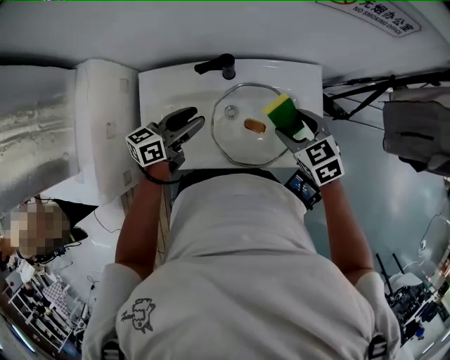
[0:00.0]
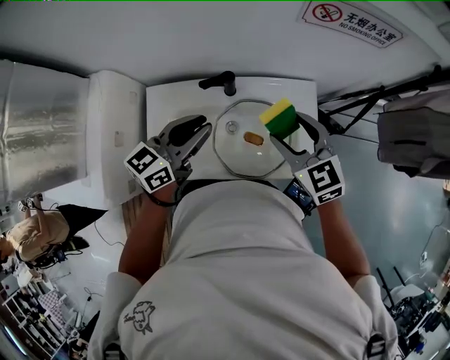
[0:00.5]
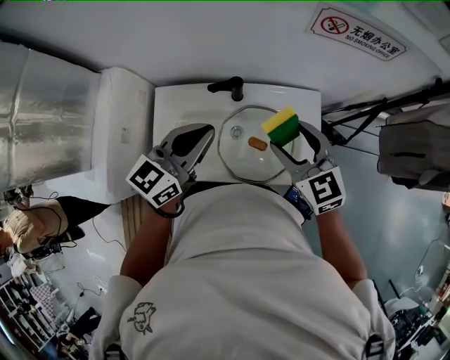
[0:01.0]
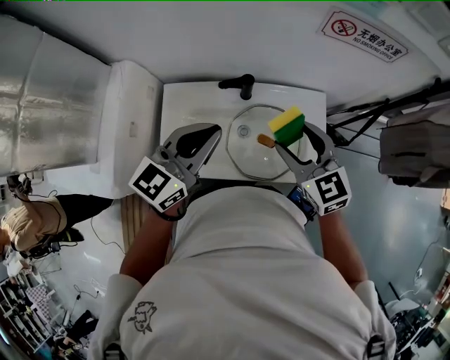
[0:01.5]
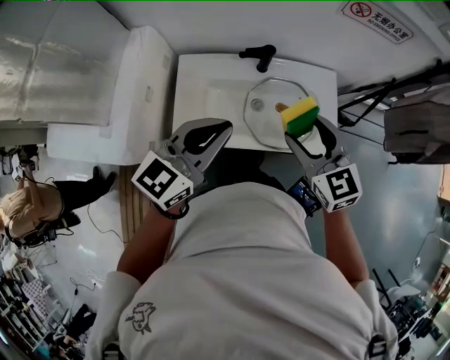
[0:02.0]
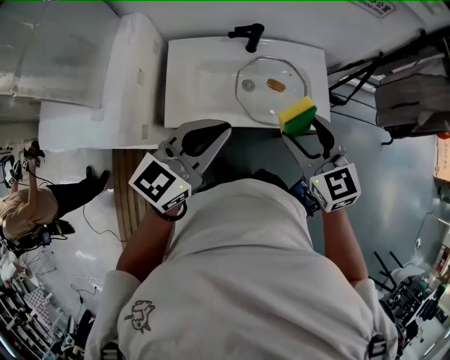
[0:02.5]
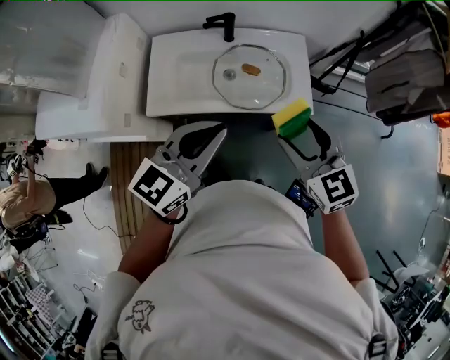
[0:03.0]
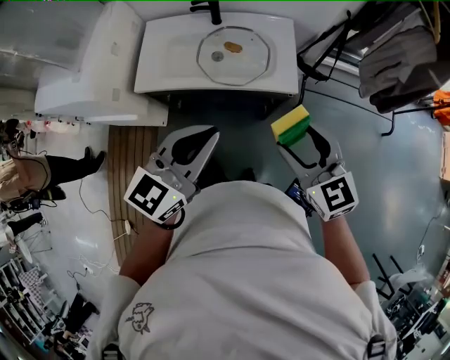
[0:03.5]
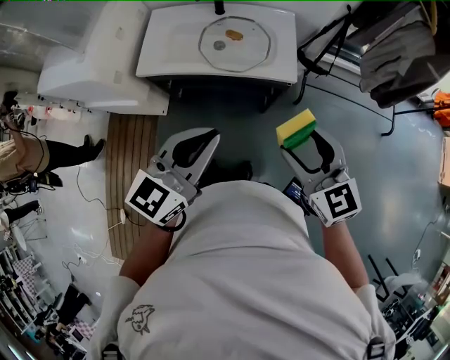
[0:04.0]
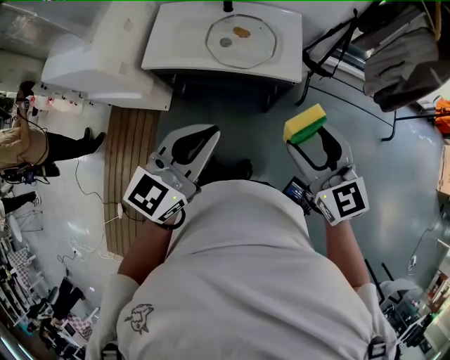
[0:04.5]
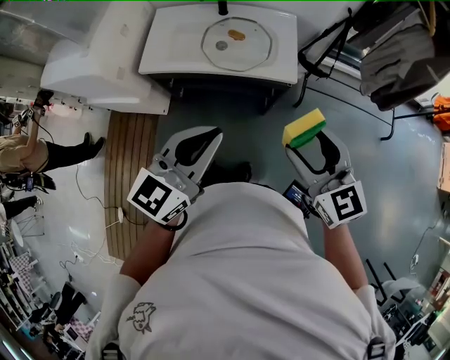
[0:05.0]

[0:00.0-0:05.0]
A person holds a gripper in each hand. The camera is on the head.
0:00.0 to 0:02.5: The two grippers go about 30 cm backward and upward. The left gripper swivels roughly 30 degrees, and closes its fingers, while the right gripper changes its angle by some 20 degrees.
0:02.5 to 0:05.0: The two grippers go about 35 cm backward and to the right.

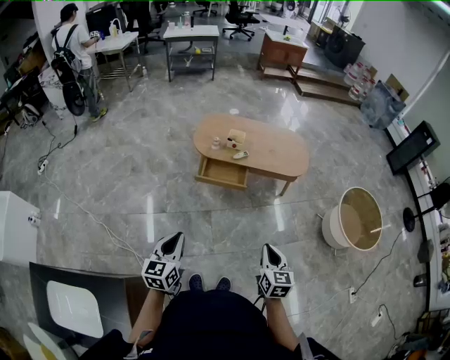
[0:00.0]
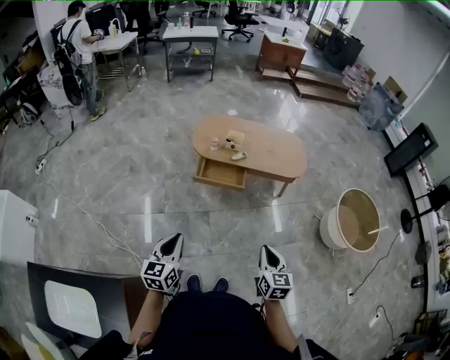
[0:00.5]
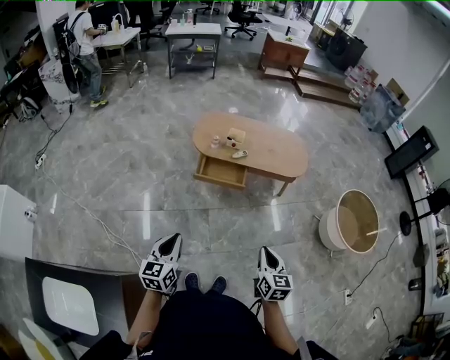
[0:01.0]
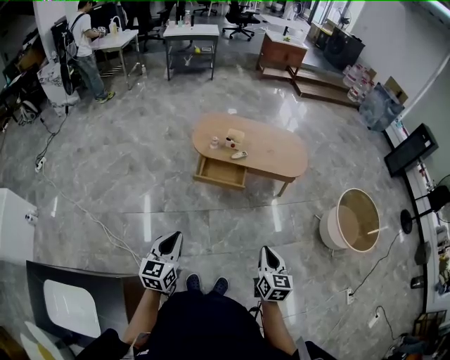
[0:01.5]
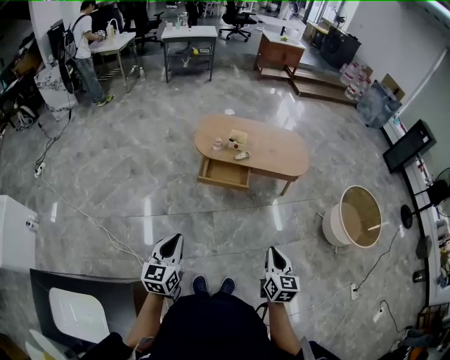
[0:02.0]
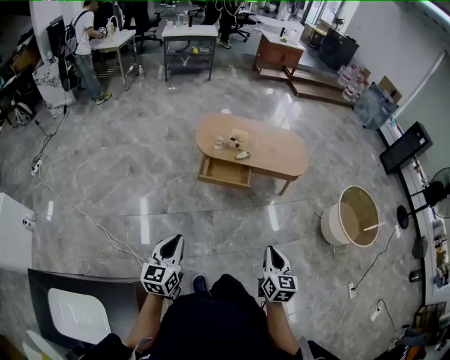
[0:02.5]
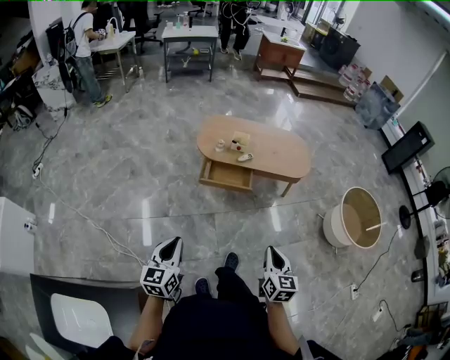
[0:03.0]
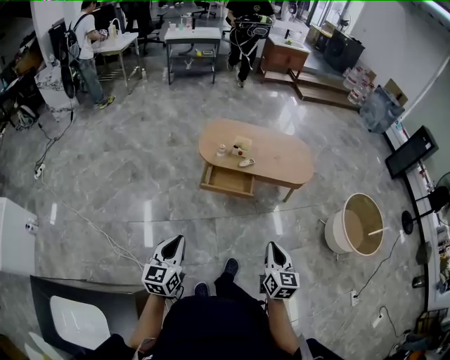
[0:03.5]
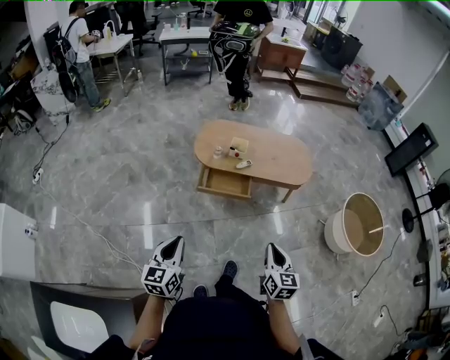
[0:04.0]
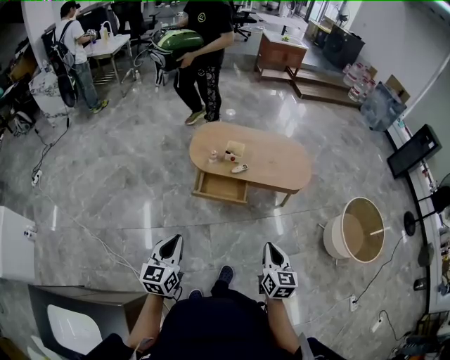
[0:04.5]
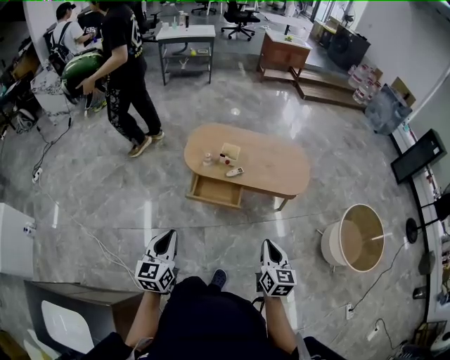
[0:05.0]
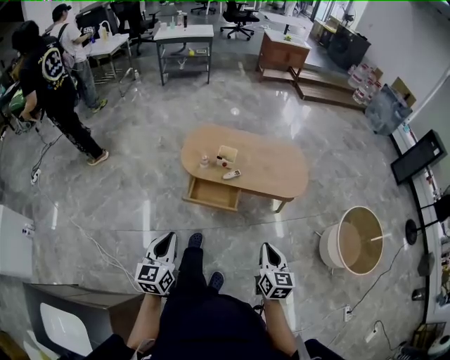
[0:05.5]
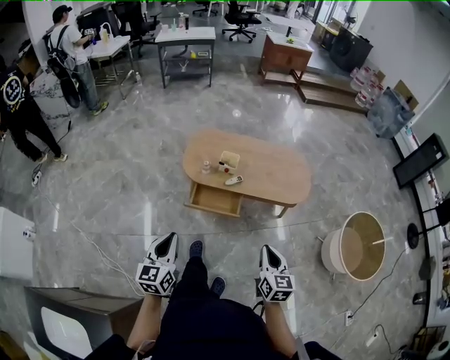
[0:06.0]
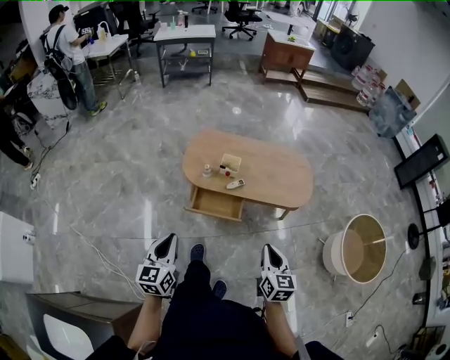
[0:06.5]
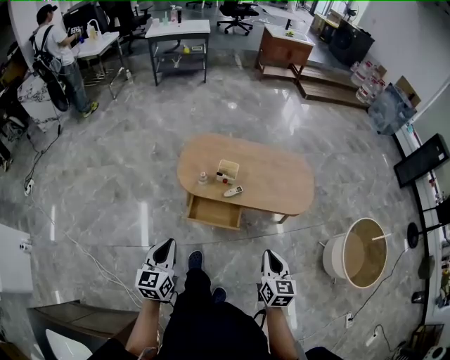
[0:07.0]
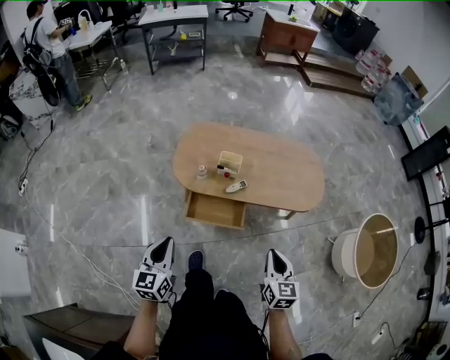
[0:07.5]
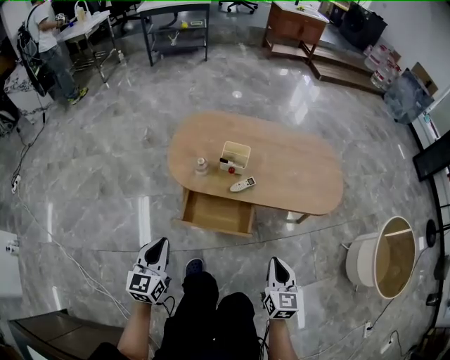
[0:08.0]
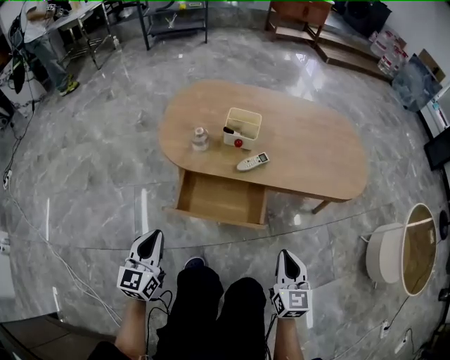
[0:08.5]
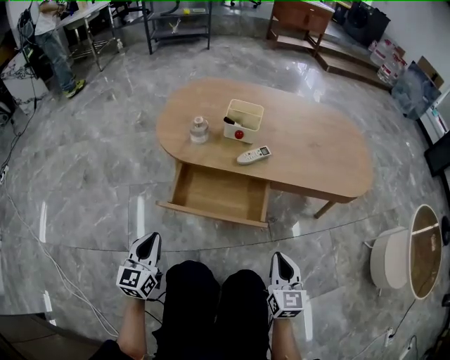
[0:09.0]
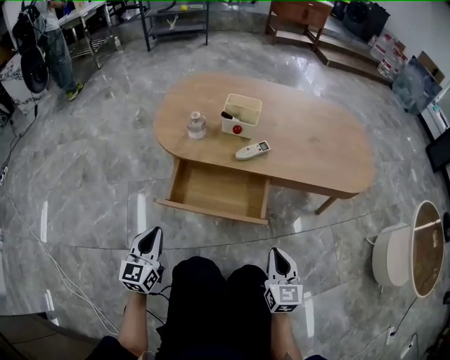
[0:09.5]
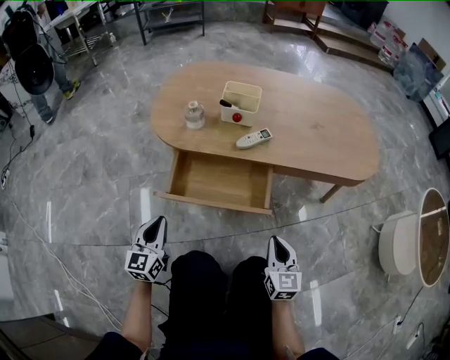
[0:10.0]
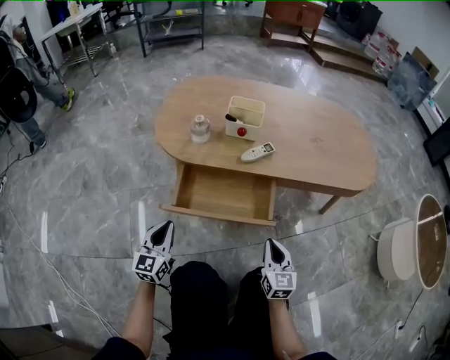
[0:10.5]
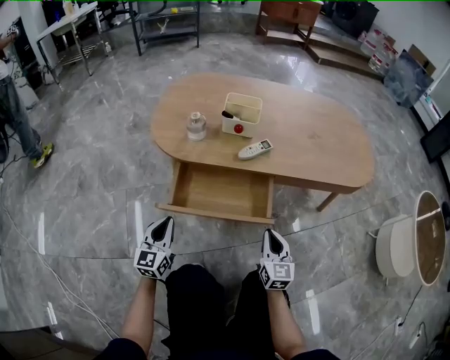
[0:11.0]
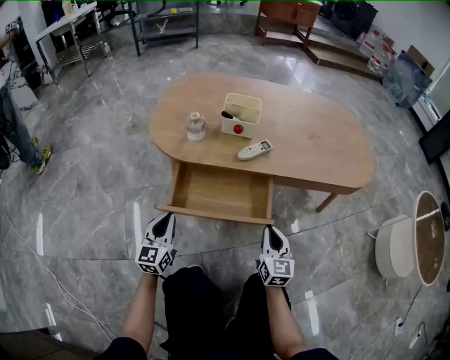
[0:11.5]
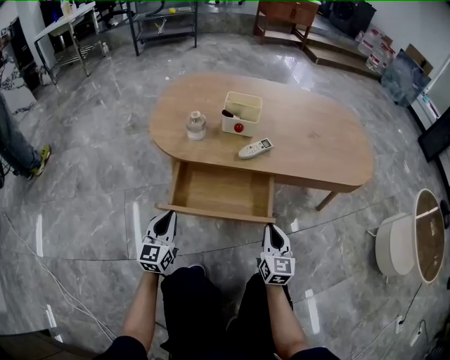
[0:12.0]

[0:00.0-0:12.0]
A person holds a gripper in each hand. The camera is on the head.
0:00.0 to 0:02.0: The grippers stay close to where they were, moving slightly.
0:02.0 to 0:04.0: Both grippers move forward, some 10 cm.
0:04.0 to 0:06.0: Both grippers move forward and to the right, roughly 20 cm.
0:06.0 to 0:08.0: The two grippers go some 35 cm downward and forward.
0:08.0 to 0:10.0: The grippers both shift downward by roughly 30 cm.
0:10.0 to 0:12.0: The two grippers go approximately 5 cm forward.

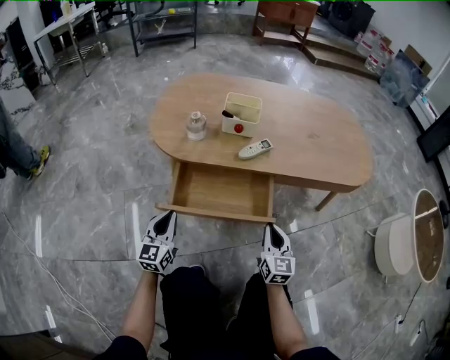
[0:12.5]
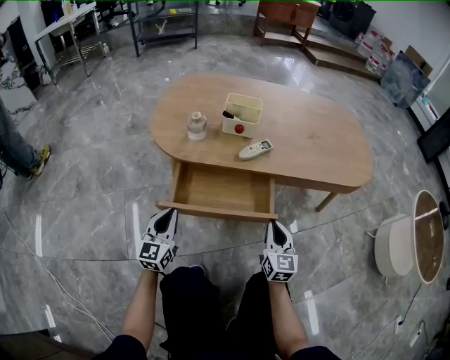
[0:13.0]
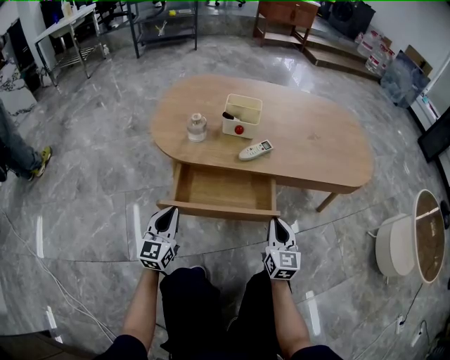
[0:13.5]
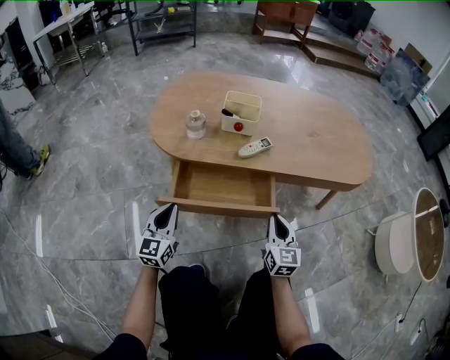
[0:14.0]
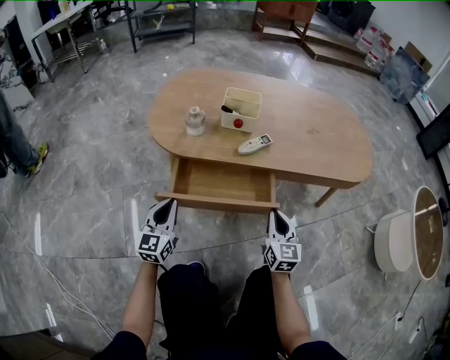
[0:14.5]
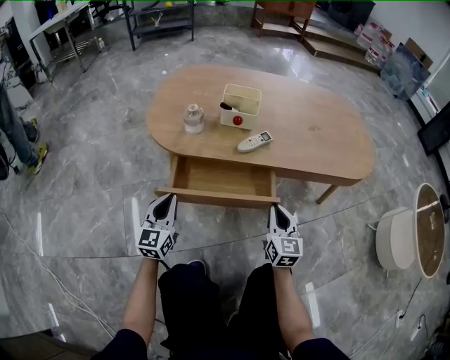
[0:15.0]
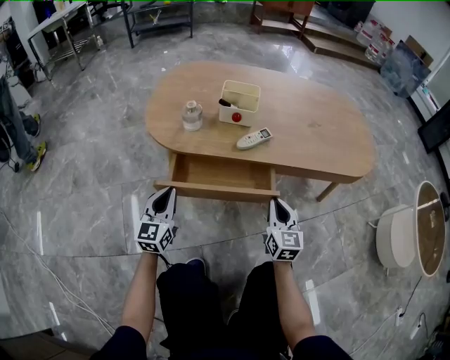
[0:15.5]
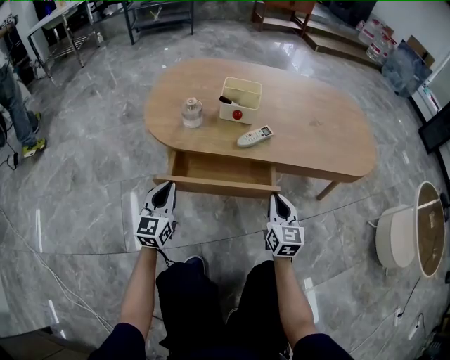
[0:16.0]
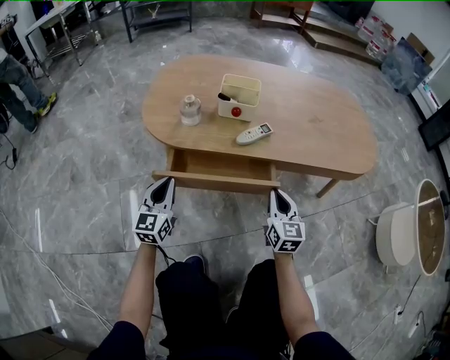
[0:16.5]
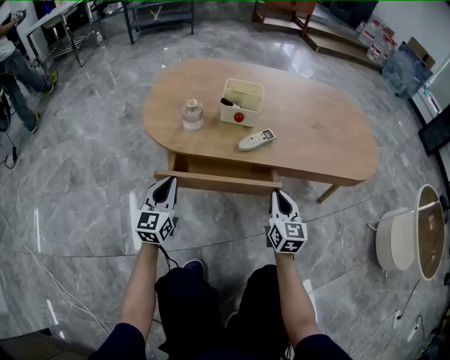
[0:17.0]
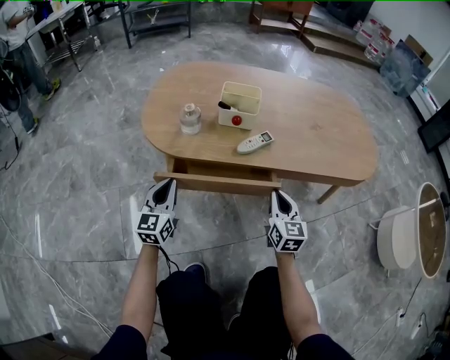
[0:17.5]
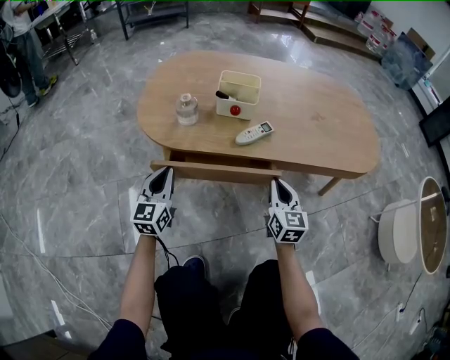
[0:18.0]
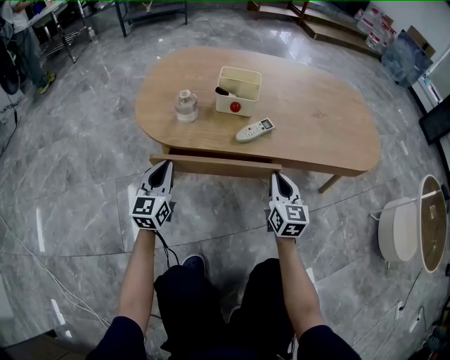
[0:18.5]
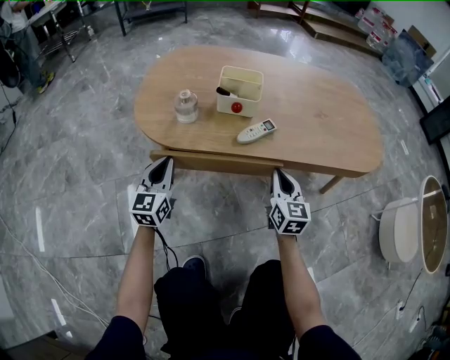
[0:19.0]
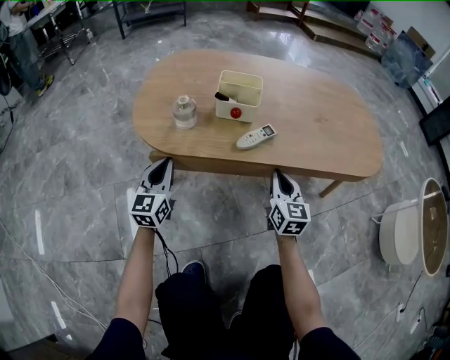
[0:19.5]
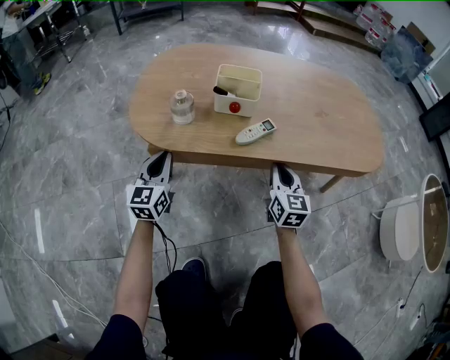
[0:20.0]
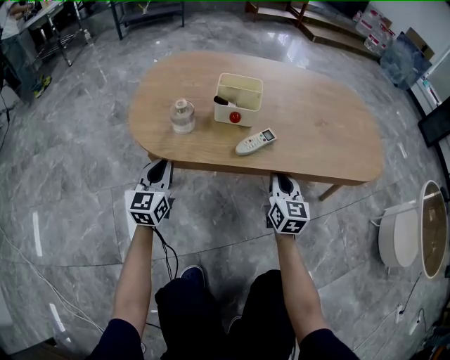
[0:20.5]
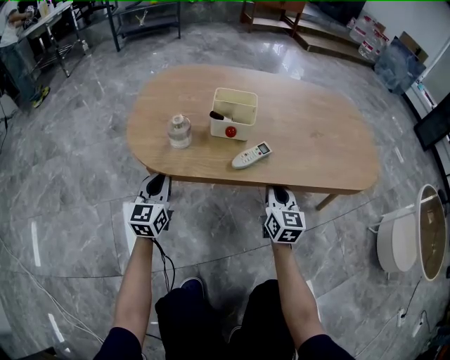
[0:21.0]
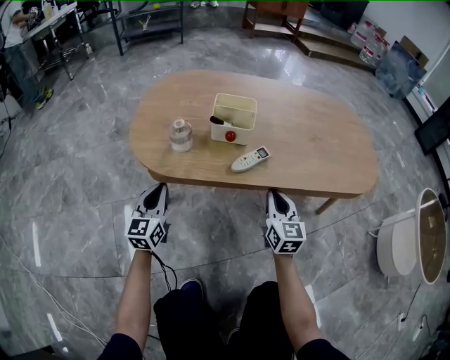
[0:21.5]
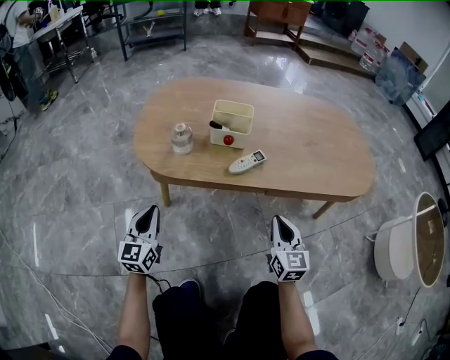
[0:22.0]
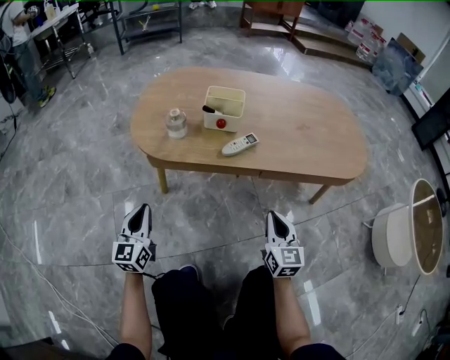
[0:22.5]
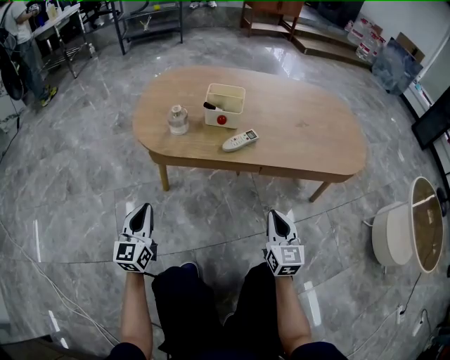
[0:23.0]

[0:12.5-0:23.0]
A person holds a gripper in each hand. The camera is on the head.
0:12.5 to 0:14.5: There are only small adjustments of the grippers.
0:14.5 to 0:16.5: There are only small adjustments of the grippers.
0:16.5 to 0:19.0: Both grippers move forward, about 5 cm.
0:19.0 to 0:21.0: The grippers make only small movements.
0:21.0 to 0:23.0: The grippers both shift backward by roughly 20 cm.
